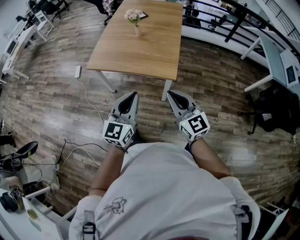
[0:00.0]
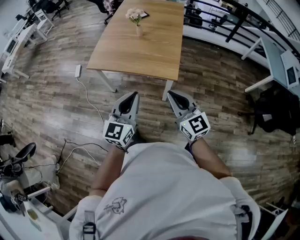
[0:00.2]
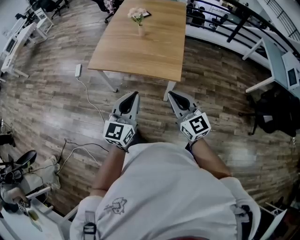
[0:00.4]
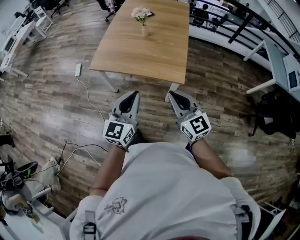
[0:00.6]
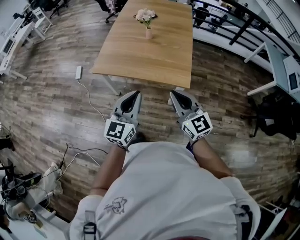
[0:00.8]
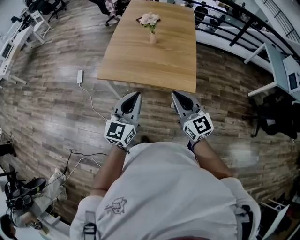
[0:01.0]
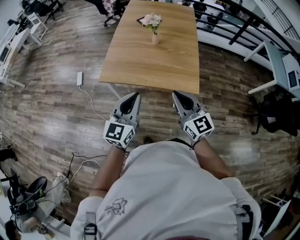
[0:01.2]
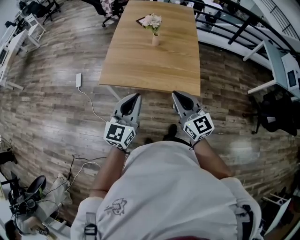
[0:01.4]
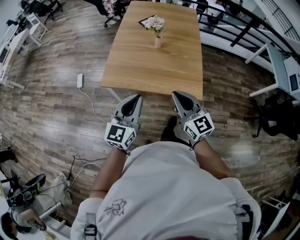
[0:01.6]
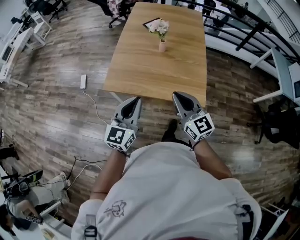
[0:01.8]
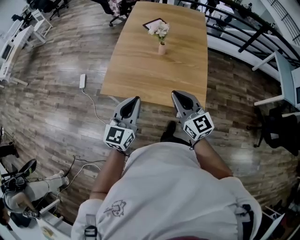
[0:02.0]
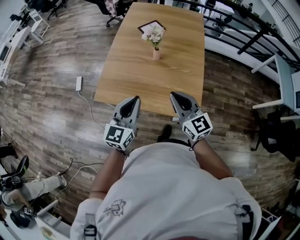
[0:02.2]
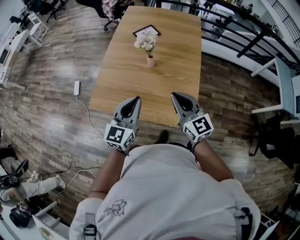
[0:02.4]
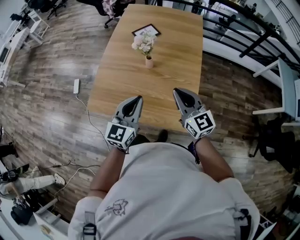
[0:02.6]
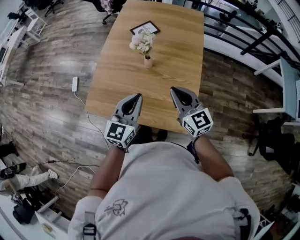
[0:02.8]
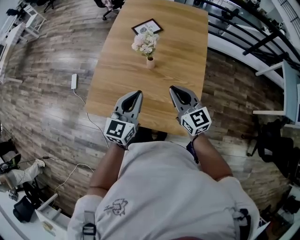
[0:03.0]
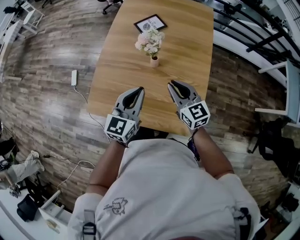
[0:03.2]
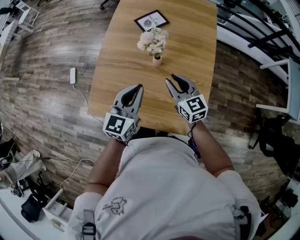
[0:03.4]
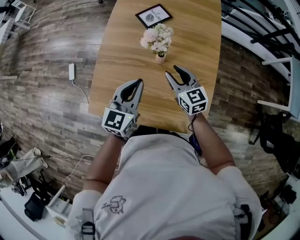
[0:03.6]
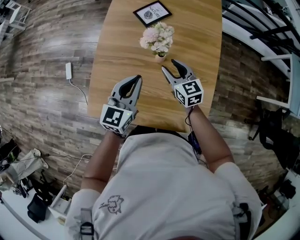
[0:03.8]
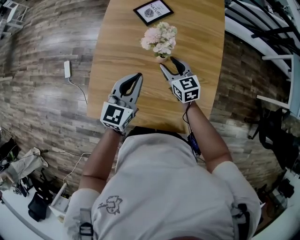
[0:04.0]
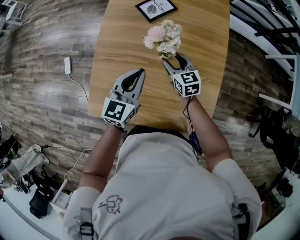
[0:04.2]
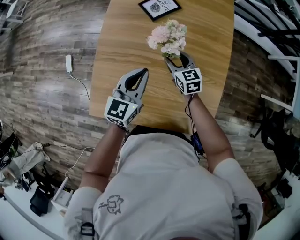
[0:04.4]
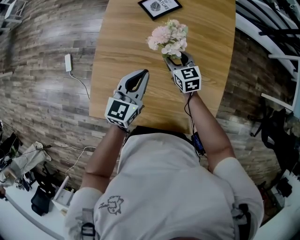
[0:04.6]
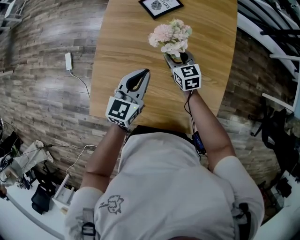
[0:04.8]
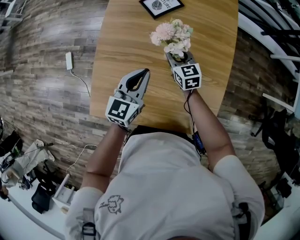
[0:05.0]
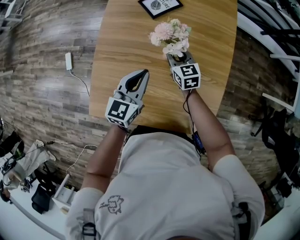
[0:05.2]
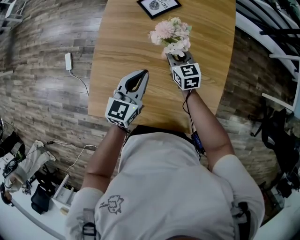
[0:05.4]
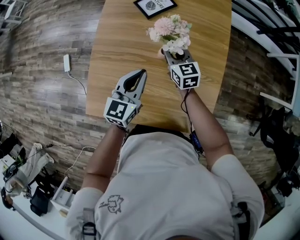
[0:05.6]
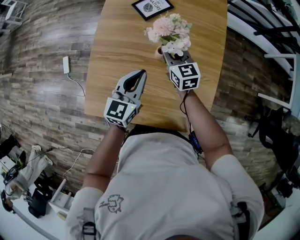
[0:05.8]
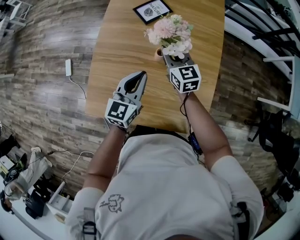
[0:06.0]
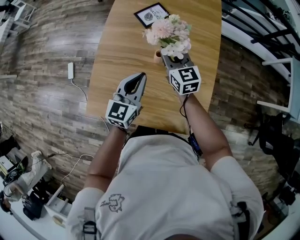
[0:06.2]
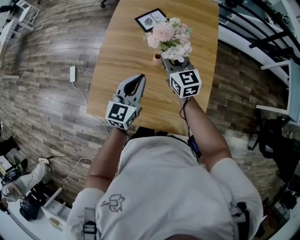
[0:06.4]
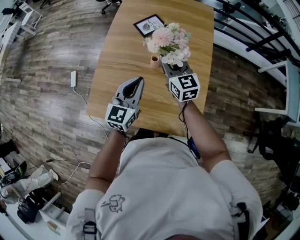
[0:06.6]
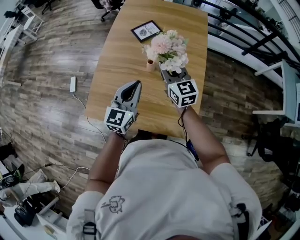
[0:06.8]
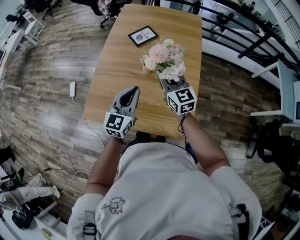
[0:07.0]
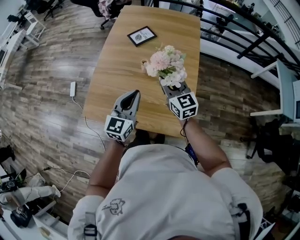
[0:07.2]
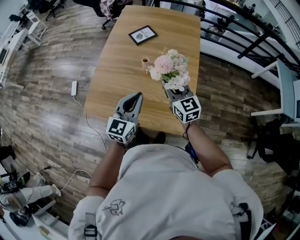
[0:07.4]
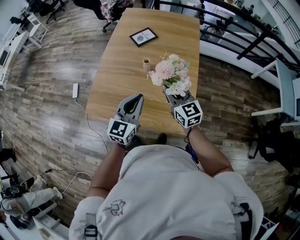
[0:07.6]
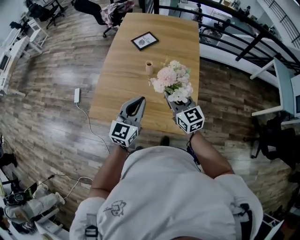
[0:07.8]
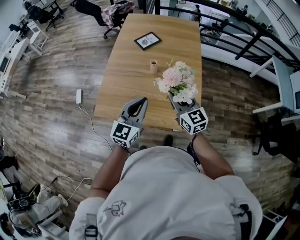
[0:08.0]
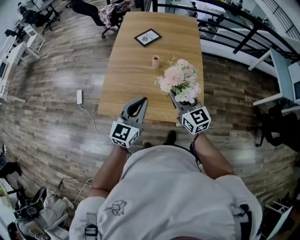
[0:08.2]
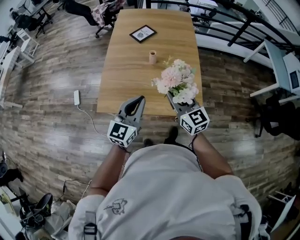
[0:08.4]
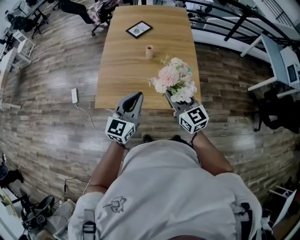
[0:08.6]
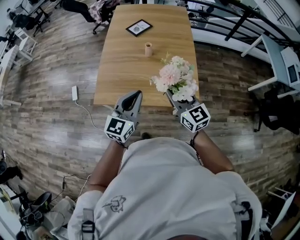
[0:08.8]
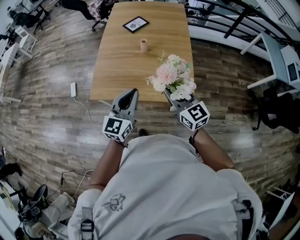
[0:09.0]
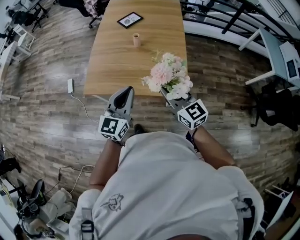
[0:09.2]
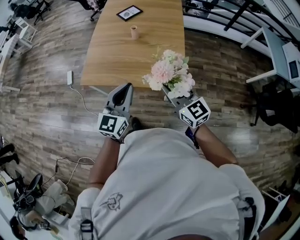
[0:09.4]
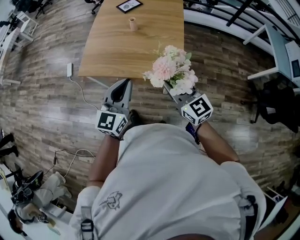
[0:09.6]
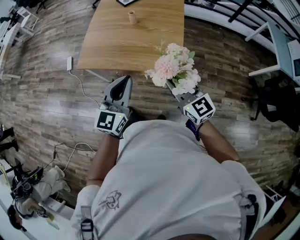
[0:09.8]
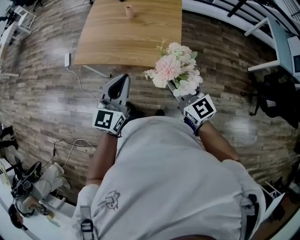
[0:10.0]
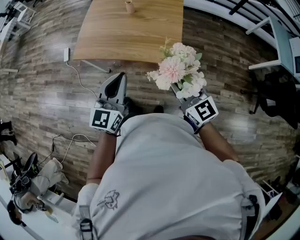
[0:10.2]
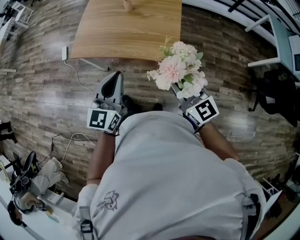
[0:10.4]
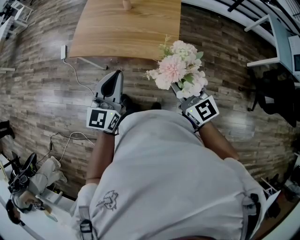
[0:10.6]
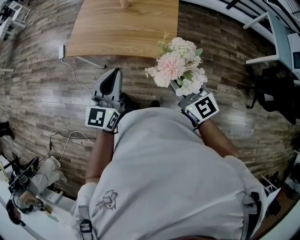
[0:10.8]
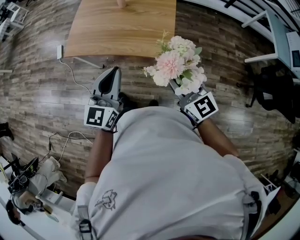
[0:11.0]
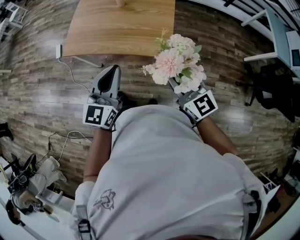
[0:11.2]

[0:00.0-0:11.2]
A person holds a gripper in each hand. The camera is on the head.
0:00.0 to 0:01.6: The grippers both shift forward and to the left by roughly 25 cm.
0:01.6 to 0:03.2: Both grippers travel together forward, some 30 cm.
0:03.2 to 0:04.8: The right gripper is displaced forward and downward by about 25 cm, and opens; the left gripper is displaced forward, downward and to the left by about 15 cm.
0:04.8 to 0:06.4: The right gripper shifts roughly 20 cm upward, swivels about 20 degrees, and closes. The left gripper heads upward and backward, covering approximately 10 cm.
0:06.4 to 0:08.0: The grippers both shift backward by some 20 cm.
0:08.0 to 0:09.6: Both grippers move backward, approximately 20 cm.
0:09.6 to 0:11.2: The right gripper moves about 5 cm.

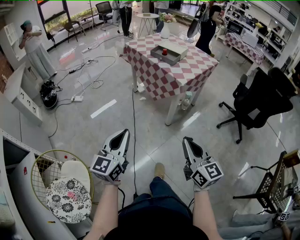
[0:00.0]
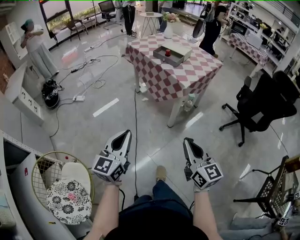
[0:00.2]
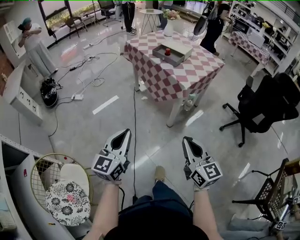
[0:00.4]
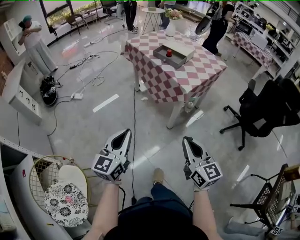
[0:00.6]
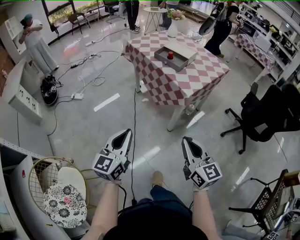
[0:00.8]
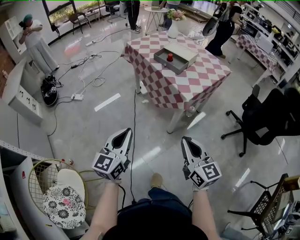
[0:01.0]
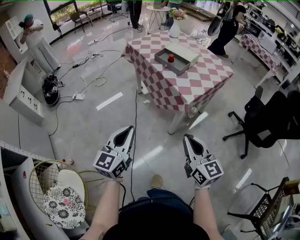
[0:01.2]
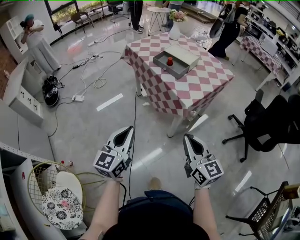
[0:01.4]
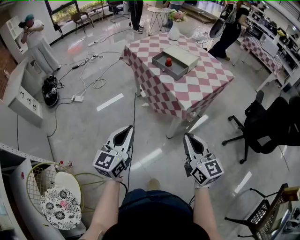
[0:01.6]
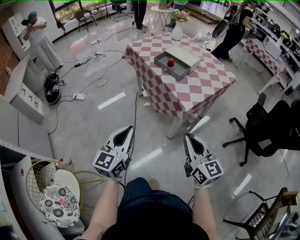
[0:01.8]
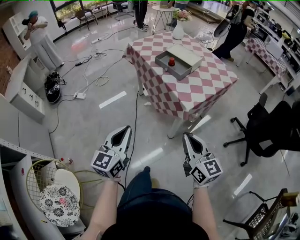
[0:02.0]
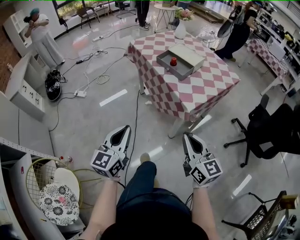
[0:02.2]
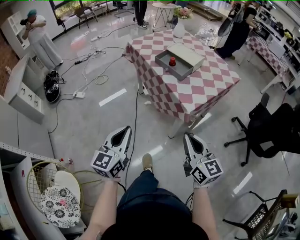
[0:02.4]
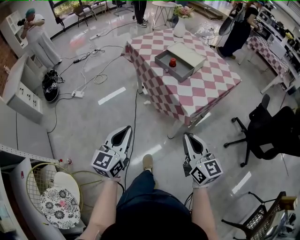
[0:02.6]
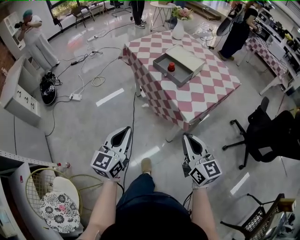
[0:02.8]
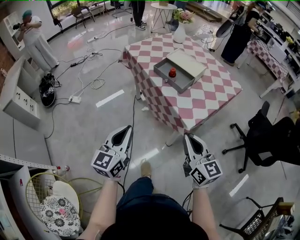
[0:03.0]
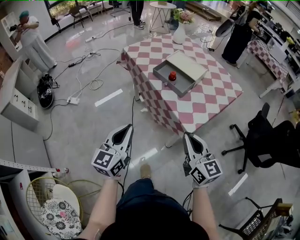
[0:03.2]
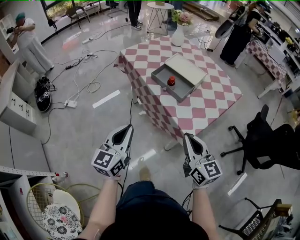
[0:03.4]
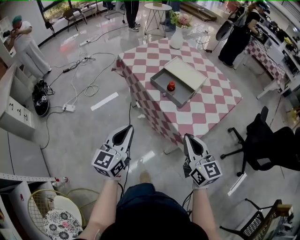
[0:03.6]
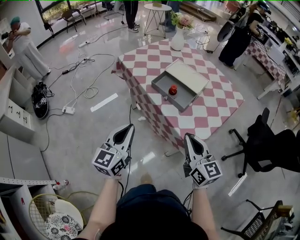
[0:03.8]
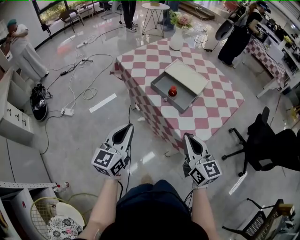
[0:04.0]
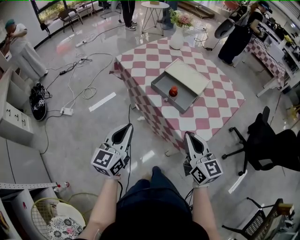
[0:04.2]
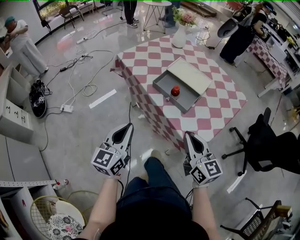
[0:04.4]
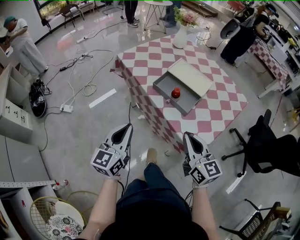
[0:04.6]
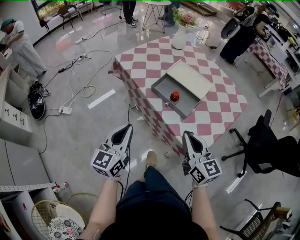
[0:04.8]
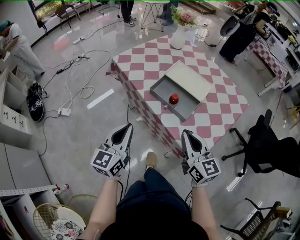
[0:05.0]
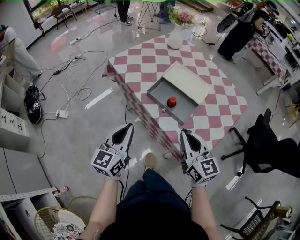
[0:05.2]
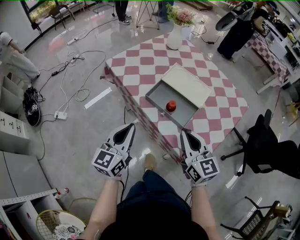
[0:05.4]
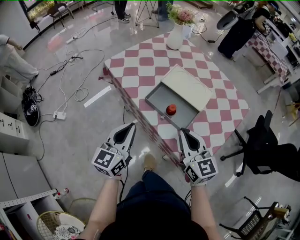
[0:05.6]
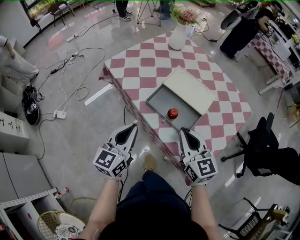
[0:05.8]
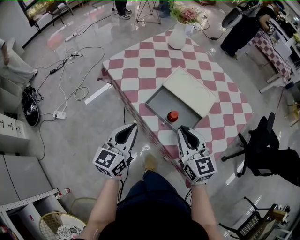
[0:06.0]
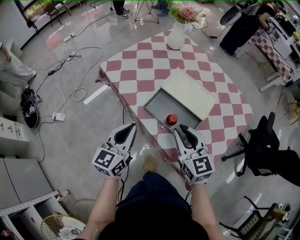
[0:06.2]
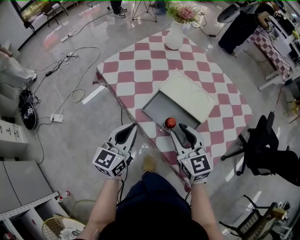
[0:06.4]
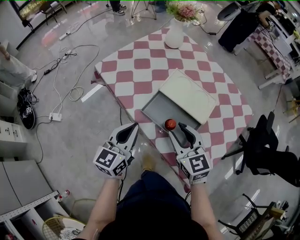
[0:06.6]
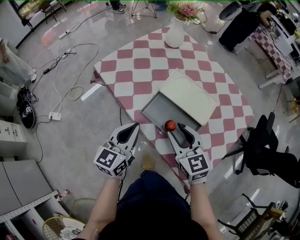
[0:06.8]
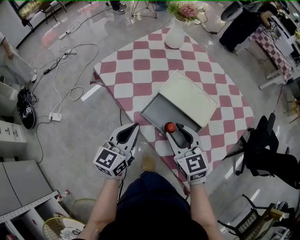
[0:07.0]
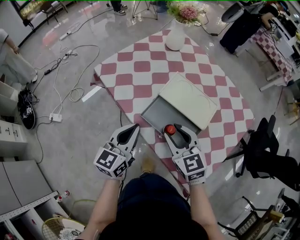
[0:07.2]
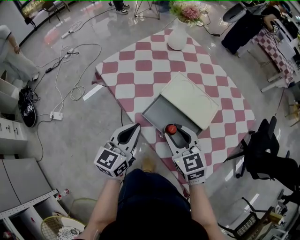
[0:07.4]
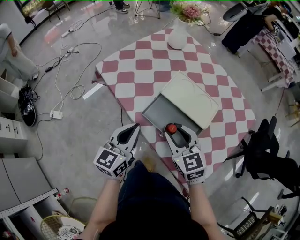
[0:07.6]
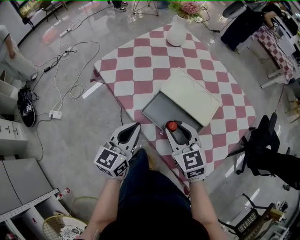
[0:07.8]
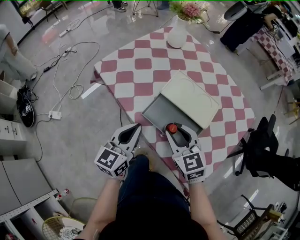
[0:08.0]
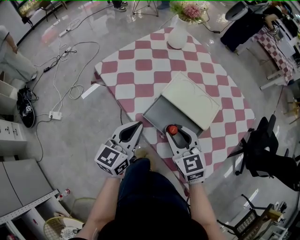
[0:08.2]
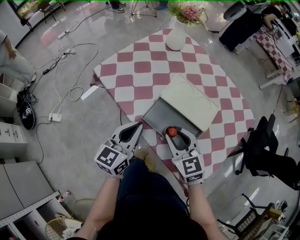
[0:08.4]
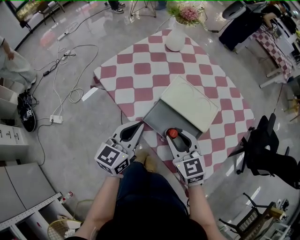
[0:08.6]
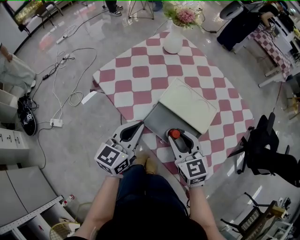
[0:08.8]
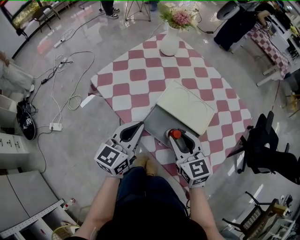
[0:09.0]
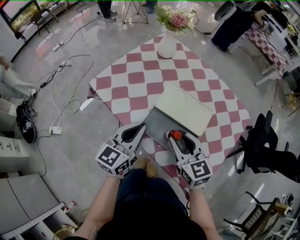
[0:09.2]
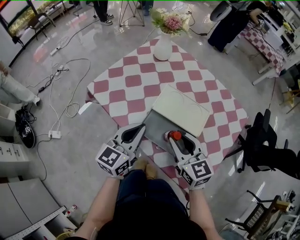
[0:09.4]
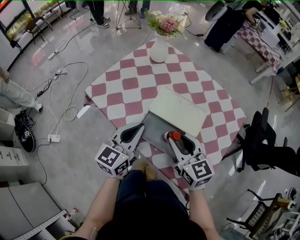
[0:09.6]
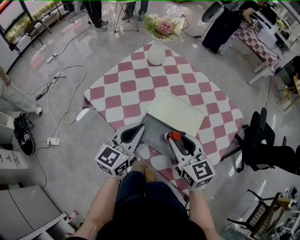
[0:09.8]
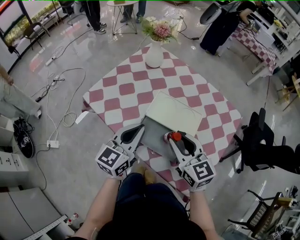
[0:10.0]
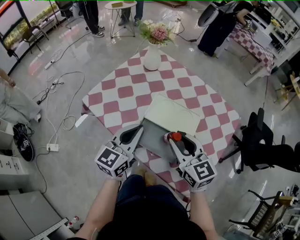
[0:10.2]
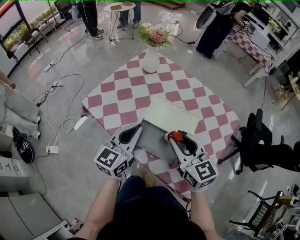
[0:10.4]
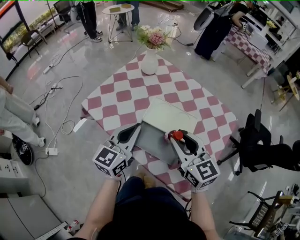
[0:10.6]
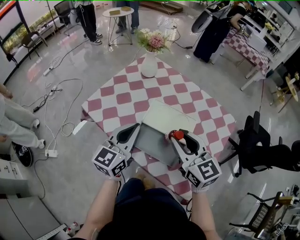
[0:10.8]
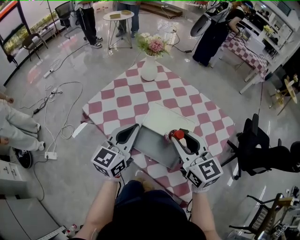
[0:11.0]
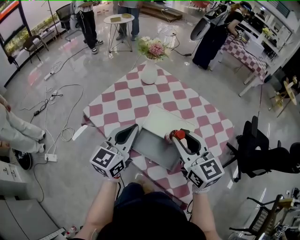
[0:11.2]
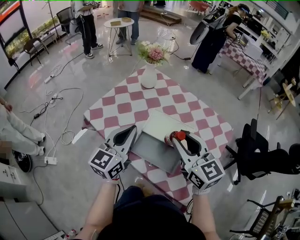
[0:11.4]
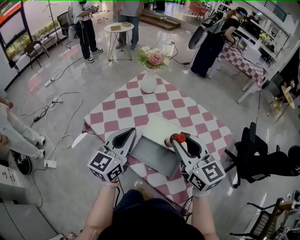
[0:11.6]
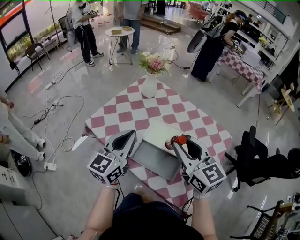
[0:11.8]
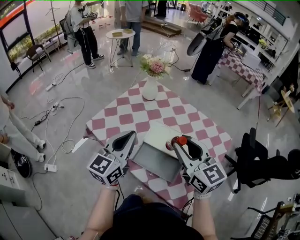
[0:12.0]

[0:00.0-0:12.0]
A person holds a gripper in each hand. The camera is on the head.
0:00.0 to 0:01.6: The right gripper shifts about 25 cm forward; the left gripper heads forward and to the right, covering approximately 25 cm.
0:01.6 to 0:03.0: The grippers both shift forward by about 15 cm.
0:03.0 to 0:04.4: Both grippers move forward, roughly 20 cm.
0:04.4 to 0:06.0: The grippers both shift forward by approximately 20 cm.
0:06.0 to 0:07.6: The right gripper heads forward and downward, covering about 10 cm, and opens its fingers; the left gripper heads forward, covering roughly 5 cm.
0:07.6 to 0:09.0: The left gripper moves forward, about 5 cm.
0:09.0 to 0:10.4: The left gripper moves roughly 5 cm; the right gripper heads upward, covering approximately 10 cm.
0:10.4 to 0:12.0: Both grippers travel together upward, some 10 cm.

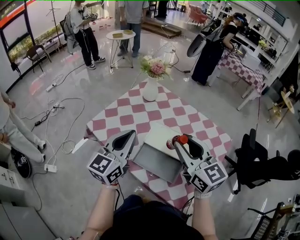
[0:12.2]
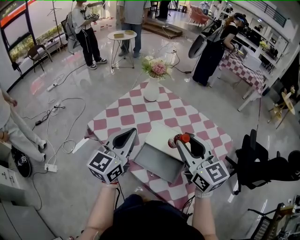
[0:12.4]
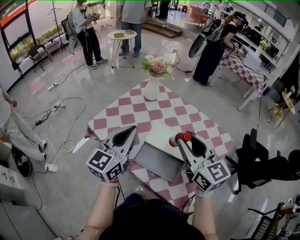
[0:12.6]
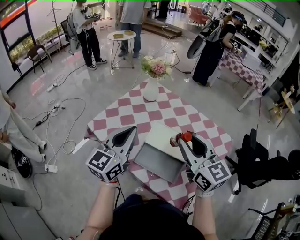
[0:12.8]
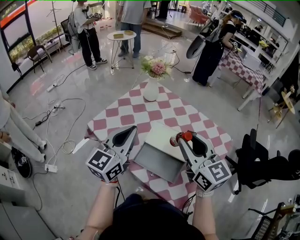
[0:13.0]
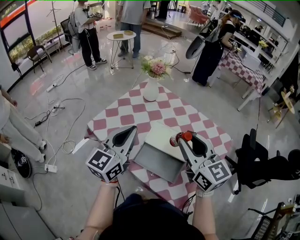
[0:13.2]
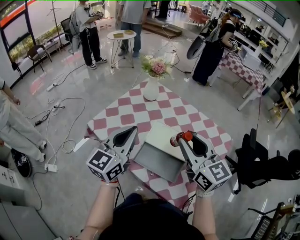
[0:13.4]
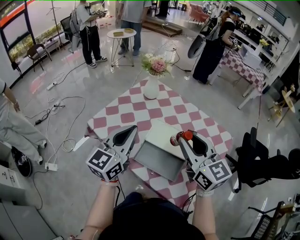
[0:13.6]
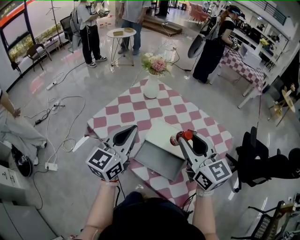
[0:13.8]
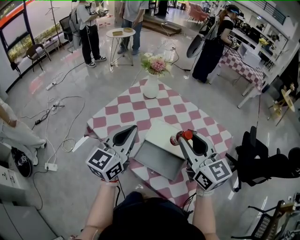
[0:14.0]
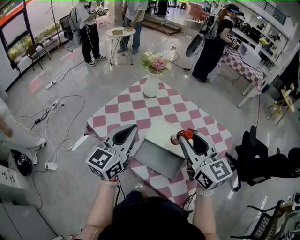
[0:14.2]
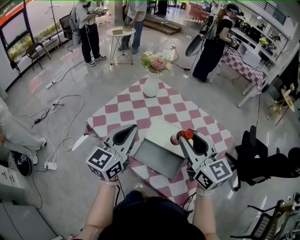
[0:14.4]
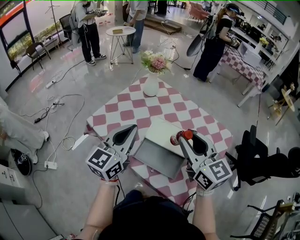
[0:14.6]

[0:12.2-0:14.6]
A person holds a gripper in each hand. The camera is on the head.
0:12.2 to 0:13.4: The grippers stay close to where they were, moving slightly.
0:13.4 to 0:14.6: Neither gripper changes place.
